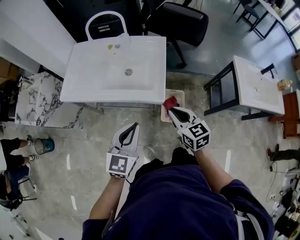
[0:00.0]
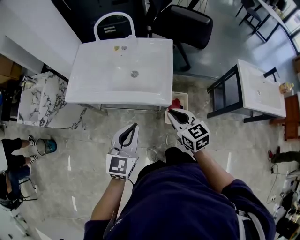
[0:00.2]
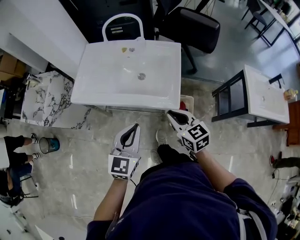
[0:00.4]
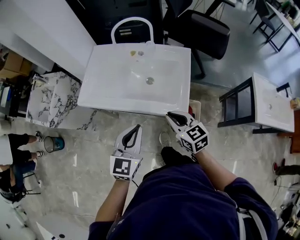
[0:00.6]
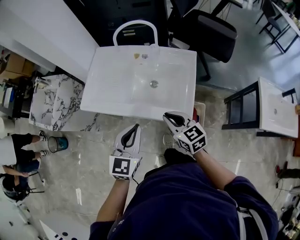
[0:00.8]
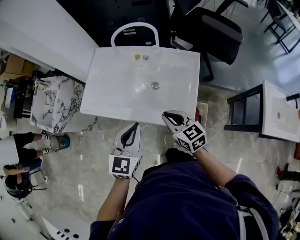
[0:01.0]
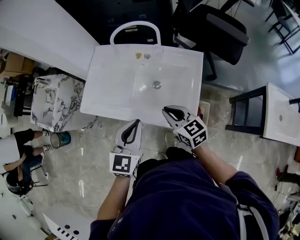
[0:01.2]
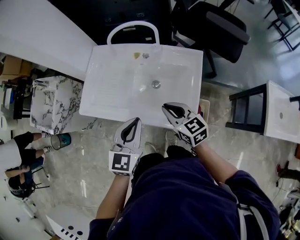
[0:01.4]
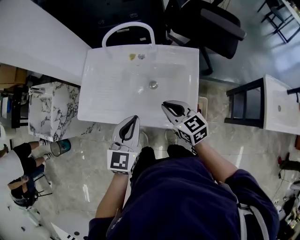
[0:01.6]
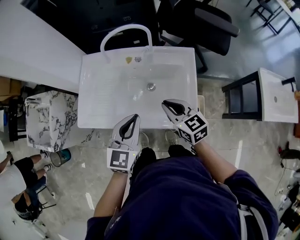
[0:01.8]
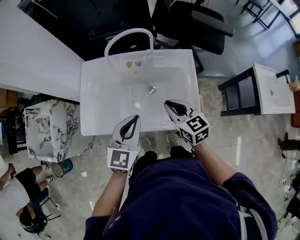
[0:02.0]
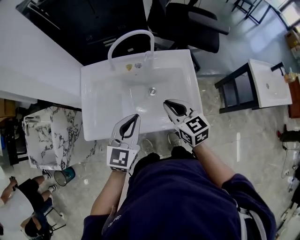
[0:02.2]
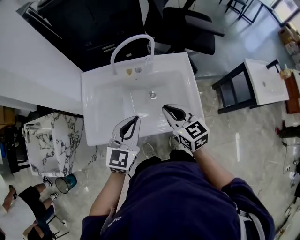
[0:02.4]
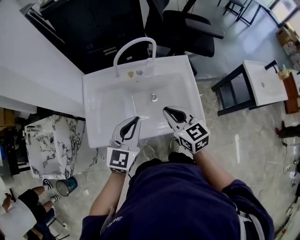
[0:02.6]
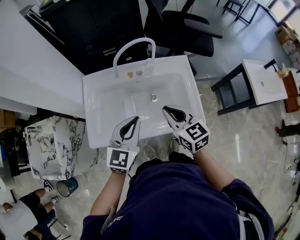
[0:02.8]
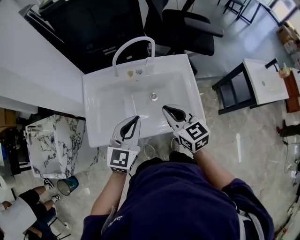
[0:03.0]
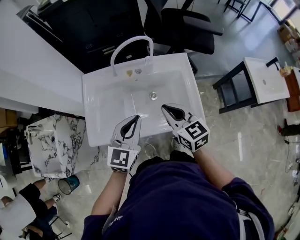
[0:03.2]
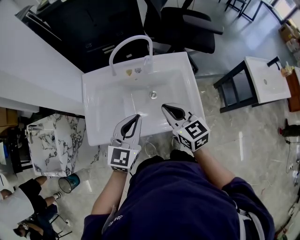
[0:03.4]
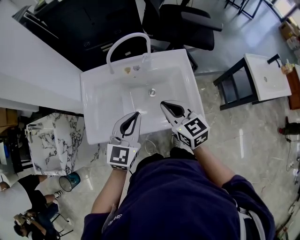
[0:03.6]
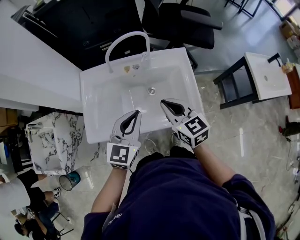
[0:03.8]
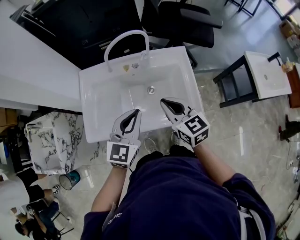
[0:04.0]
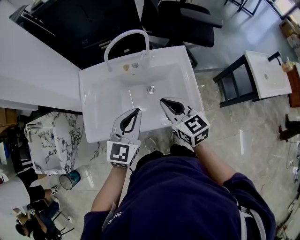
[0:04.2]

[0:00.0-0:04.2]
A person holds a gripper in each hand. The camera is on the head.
0:00.0 to 0:01.4: The left gripper moves forward, roughly 20 cm; the right gripper travels forward and to the left by about 25 cm.
0:01.4 to 0:02.8: The right gripper moves approximately 10 cm, and changes its angle by roughly 30 degrees. Meanwhile the left gripper moves about 10 cm, and rotates roughly 20 degrees.
0:02.8 to 0:04.2: The grippers stay close to where they were, moving slightly.

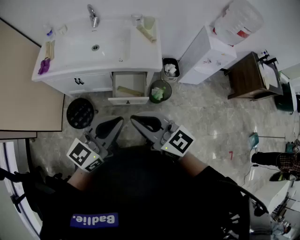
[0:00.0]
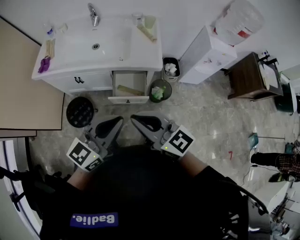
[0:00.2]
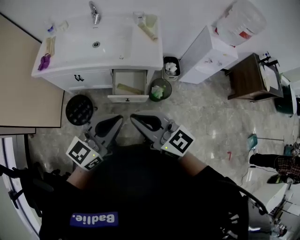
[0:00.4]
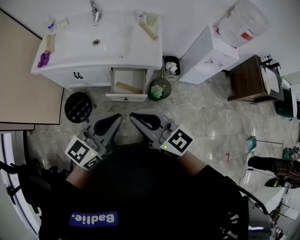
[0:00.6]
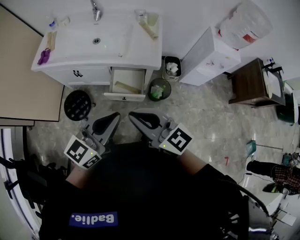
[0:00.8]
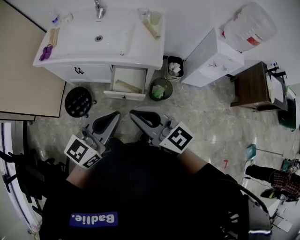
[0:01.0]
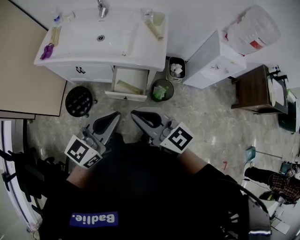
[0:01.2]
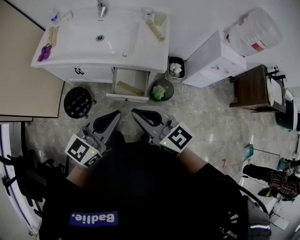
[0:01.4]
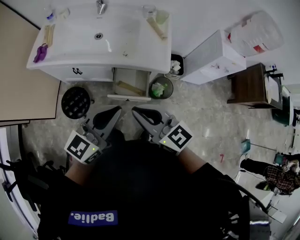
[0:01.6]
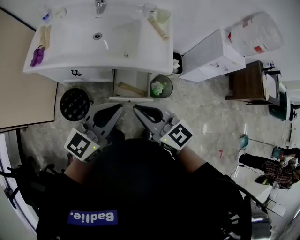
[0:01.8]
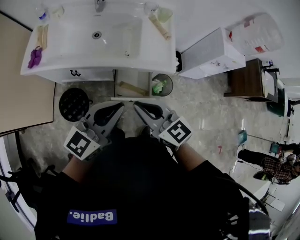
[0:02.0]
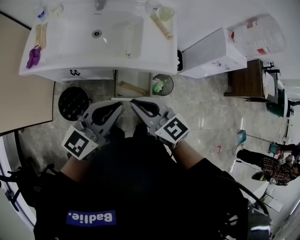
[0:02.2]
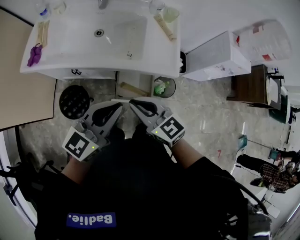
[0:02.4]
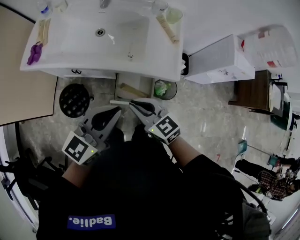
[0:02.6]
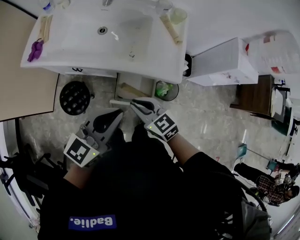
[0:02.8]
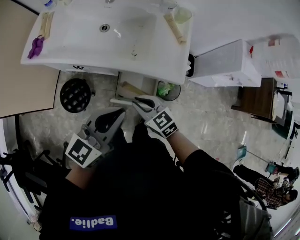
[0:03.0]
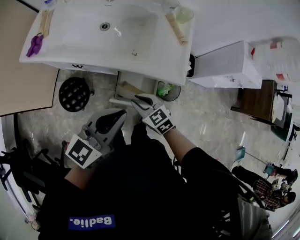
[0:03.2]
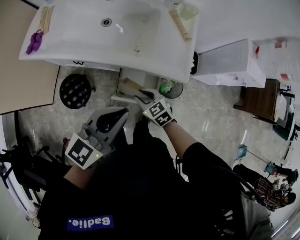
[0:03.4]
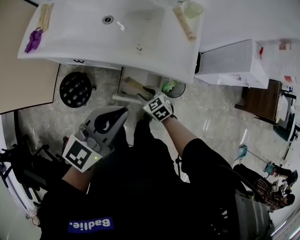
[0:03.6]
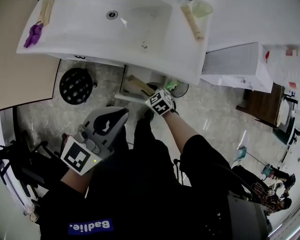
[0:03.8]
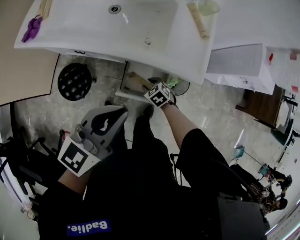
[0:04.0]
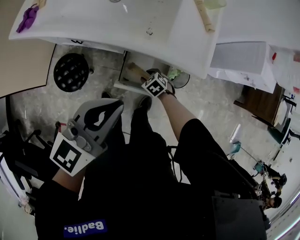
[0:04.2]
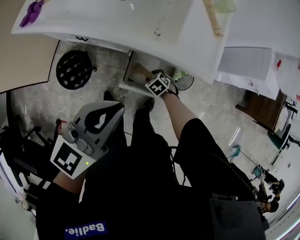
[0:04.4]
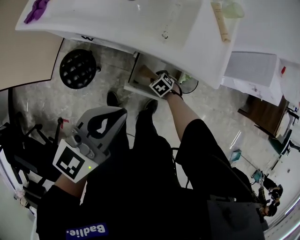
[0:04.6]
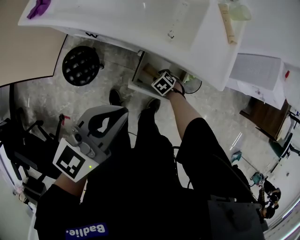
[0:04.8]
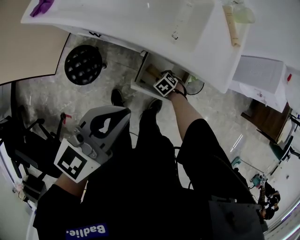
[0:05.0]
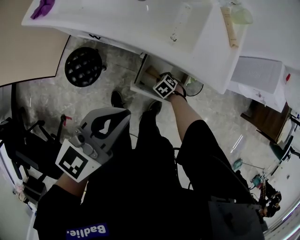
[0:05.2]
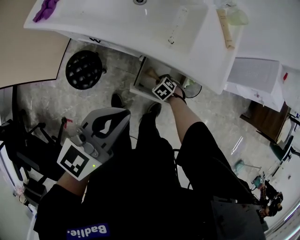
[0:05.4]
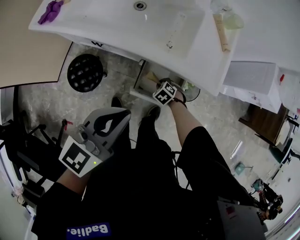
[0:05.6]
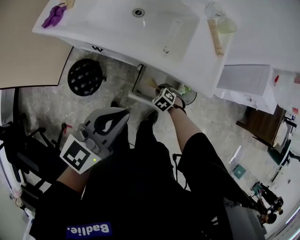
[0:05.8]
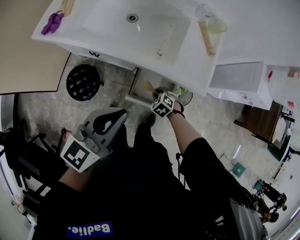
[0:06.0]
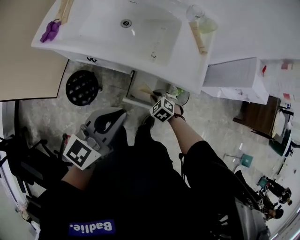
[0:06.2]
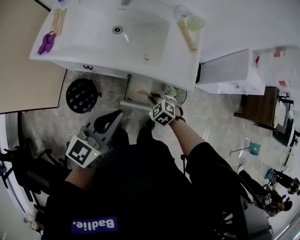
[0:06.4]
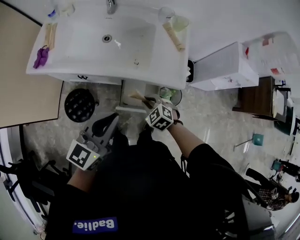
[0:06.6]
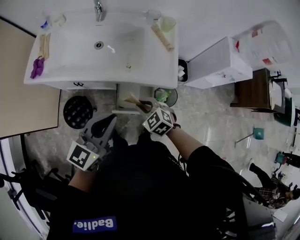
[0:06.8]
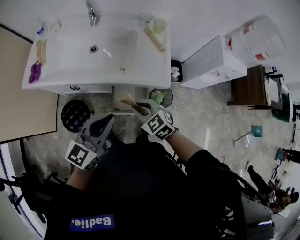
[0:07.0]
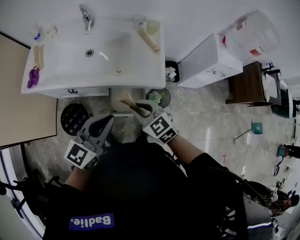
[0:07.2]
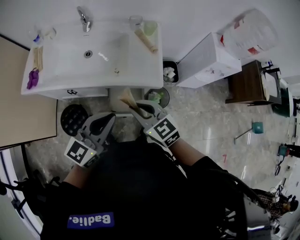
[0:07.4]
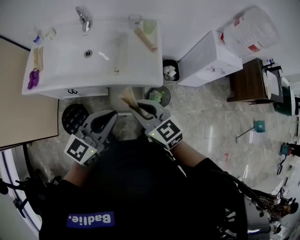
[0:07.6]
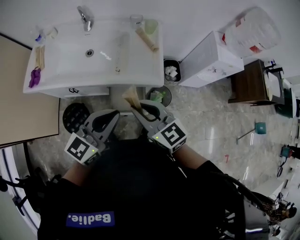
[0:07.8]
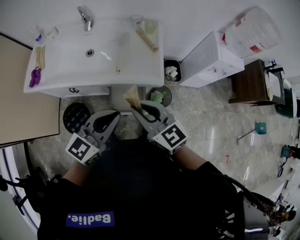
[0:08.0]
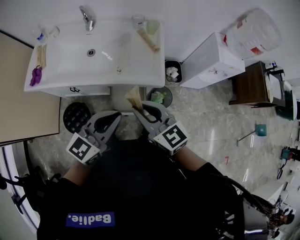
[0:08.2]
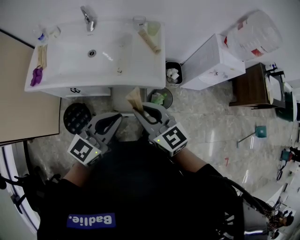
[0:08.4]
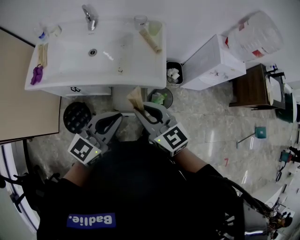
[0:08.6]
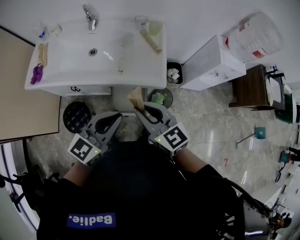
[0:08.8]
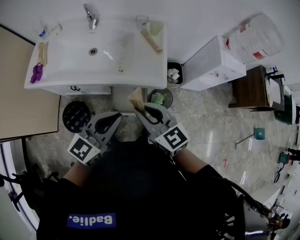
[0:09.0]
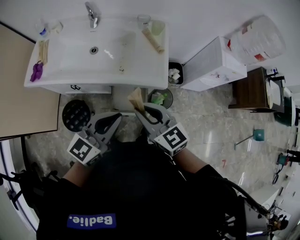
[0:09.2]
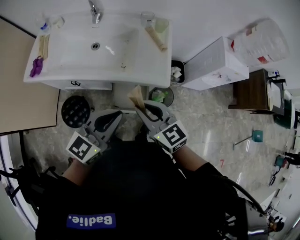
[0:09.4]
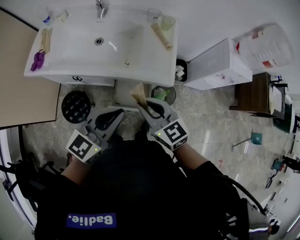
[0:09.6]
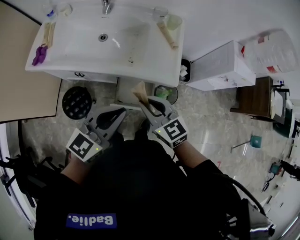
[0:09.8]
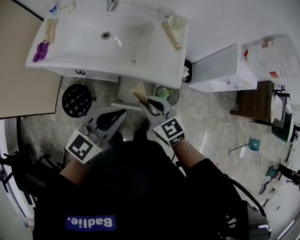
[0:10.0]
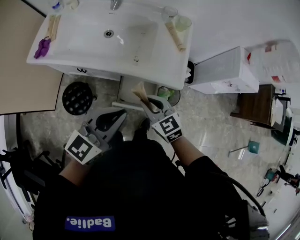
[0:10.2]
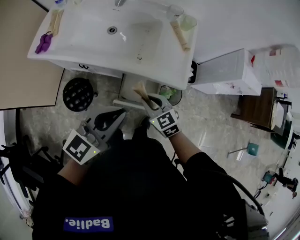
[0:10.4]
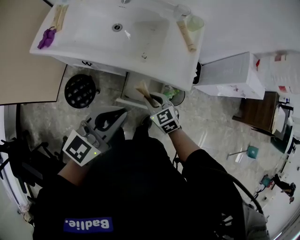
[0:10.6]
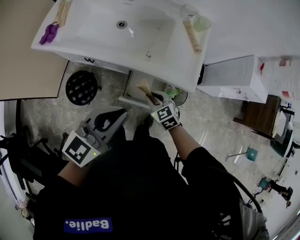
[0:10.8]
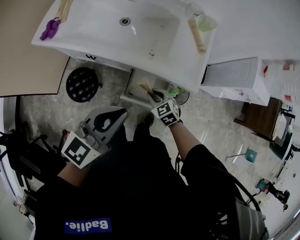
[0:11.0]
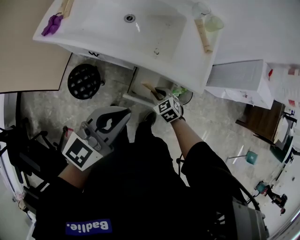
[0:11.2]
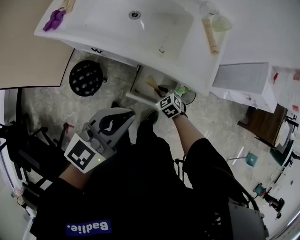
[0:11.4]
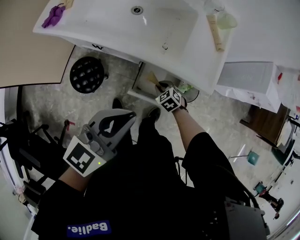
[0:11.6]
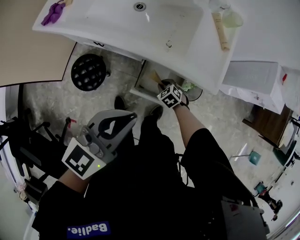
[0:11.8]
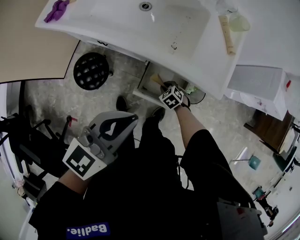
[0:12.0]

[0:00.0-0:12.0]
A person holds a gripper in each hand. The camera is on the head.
0:00.0 to 0:01.6: The two grippers go about 10 cm forward.
0:01.6 to 0:03.0: The right gripper travels downward and forward by roughly 25 cm, and swivels about 30 degrees; the left gripper shifts approximately 10 cm forward and downward.
0:03.0 to 0:04.4: The right gripper is displaced downward by some 35 cm, tips its fingers downward by roughly 40 degrees, and opens its fingers. The left gripper changes place by some 10 cm.
0:04.4 to 0:06.0: The right gripper goes some 10 cm upward, and closes.
0:06.0 to 0:07.6: The right gripper shifts some 40 cm upward, and tilts its fingers about 50 degrees upward; the left gripper heads to the right and upward, covering roughly 15 cm.
0:07.6 to 0:09.0: The grippers stay close to where they were, moving slightly.
0:09.0 to 0:10.4: The left gripper heads to the left, covering about 5 cm. The right gripper goes roughly 20 cm downward, and turns by some 20 degrees.
0:10.4 to 0:12.0: The right gripper travels downward by some 30 cm, and angles its fingers downward, by approximately 30 degrees, while the left gripper travels downward by about 5 cm.

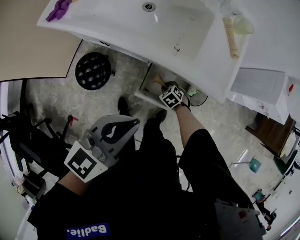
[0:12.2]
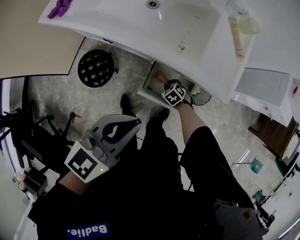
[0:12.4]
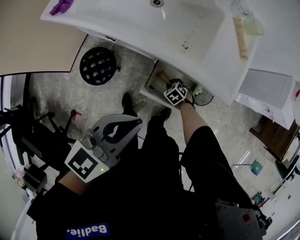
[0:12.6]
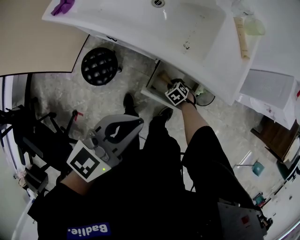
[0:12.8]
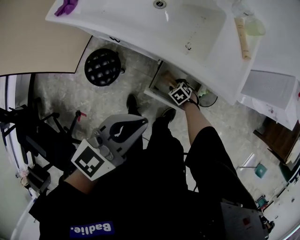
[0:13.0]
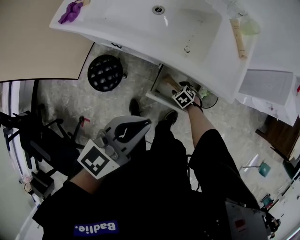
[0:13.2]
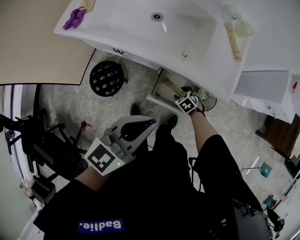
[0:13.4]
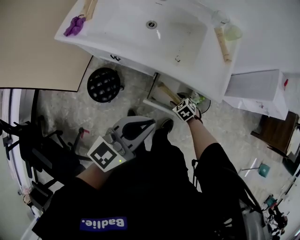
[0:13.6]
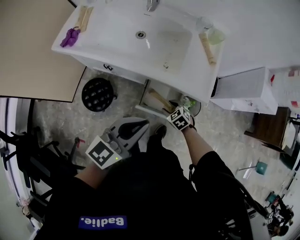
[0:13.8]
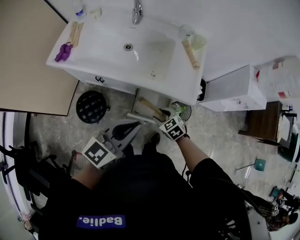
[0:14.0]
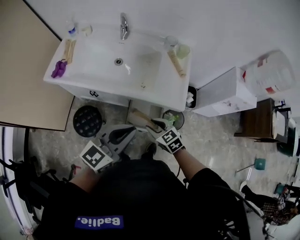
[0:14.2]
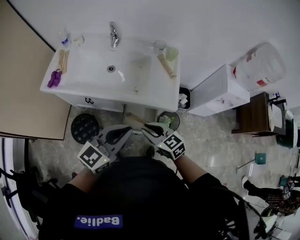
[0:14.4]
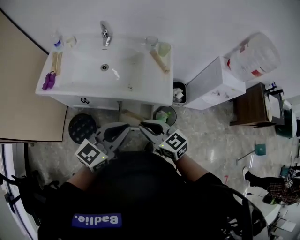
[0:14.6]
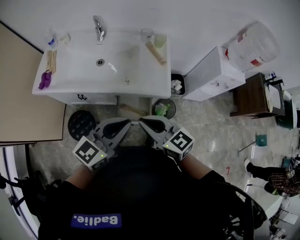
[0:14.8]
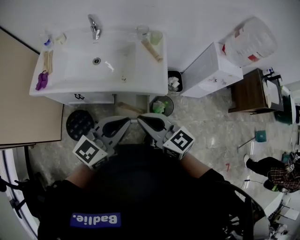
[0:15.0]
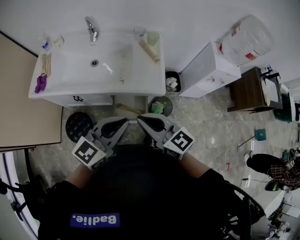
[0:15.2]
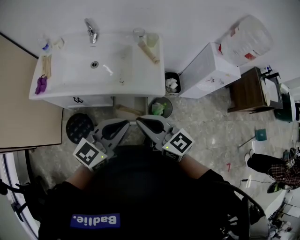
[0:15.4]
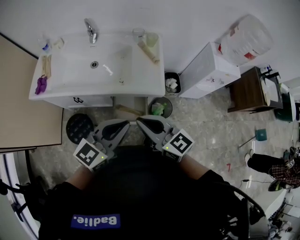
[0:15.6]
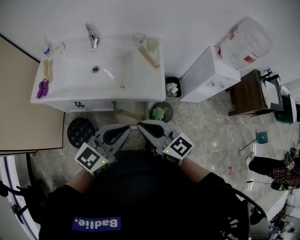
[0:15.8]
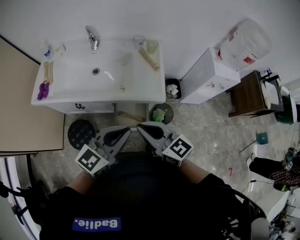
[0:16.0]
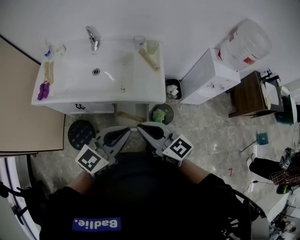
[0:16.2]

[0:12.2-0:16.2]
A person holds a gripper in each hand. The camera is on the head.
0:12.2 to 0:13.6: The right gripper is displaced upward by about 10 cm, and opens up.
0:13.6 to 0:14.8: The right gripper goes about 40 cm upward, points its fingers approximately 50 degrees further upward, and closes; the left gripper heads upward and to the right, covering some 15 cm.
0:14.8 to 0:16.2: The grippers move only a little.

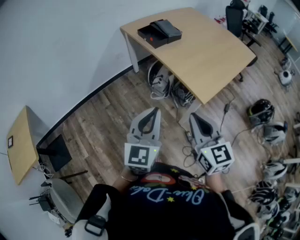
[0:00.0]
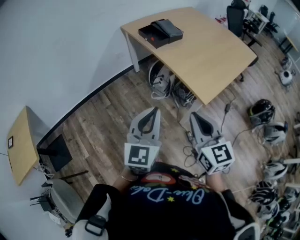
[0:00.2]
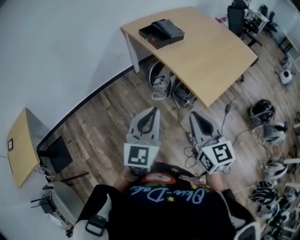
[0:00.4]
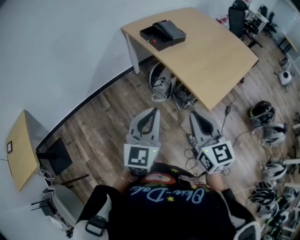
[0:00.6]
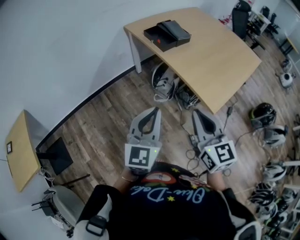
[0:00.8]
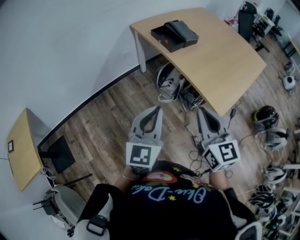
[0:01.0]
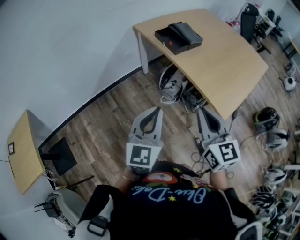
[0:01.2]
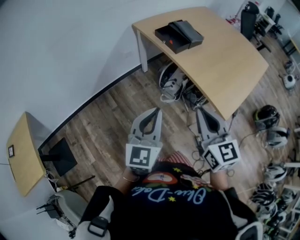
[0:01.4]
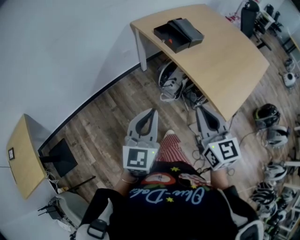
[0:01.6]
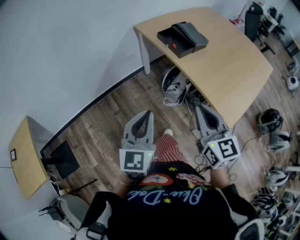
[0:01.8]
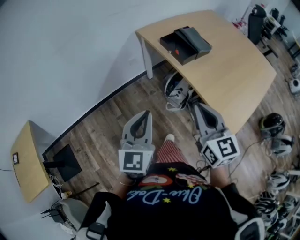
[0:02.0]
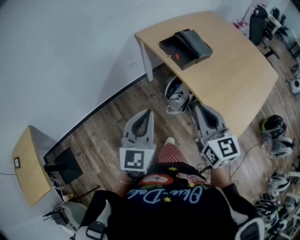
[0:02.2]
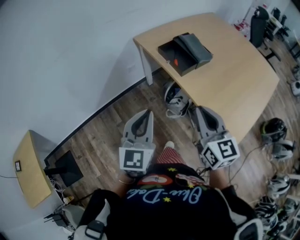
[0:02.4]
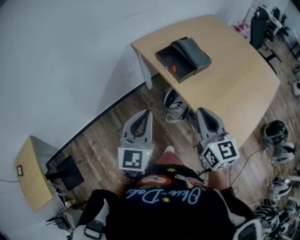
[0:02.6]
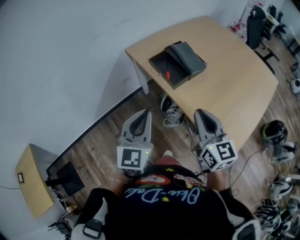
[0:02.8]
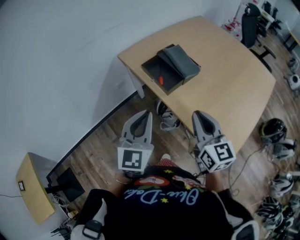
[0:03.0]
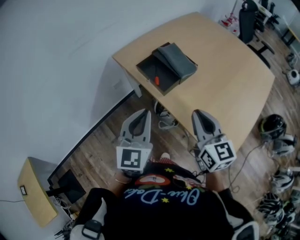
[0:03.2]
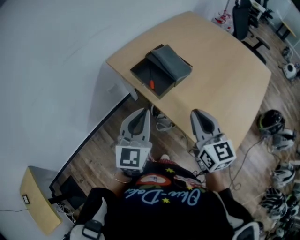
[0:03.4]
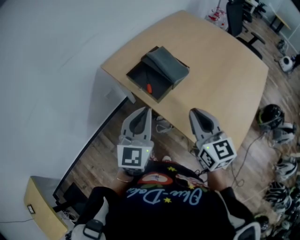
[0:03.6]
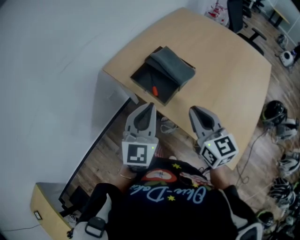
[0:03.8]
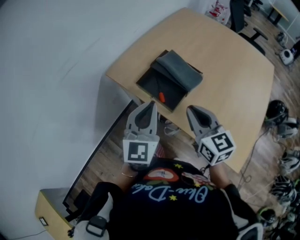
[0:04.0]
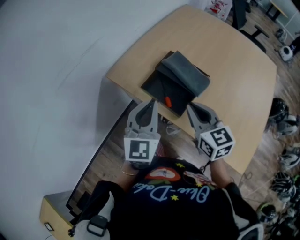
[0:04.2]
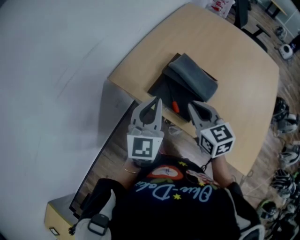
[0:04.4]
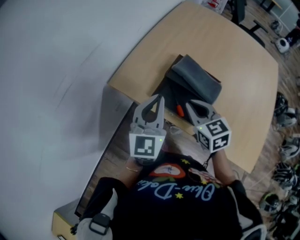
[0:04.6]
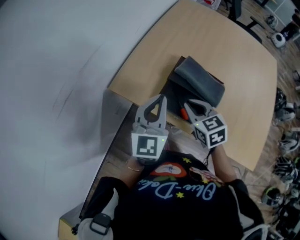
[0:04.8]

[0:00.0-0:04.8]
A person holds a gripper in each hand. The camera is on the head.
0:00.0 to 0:01.6: The right gripper goes some 20 cm forward and to the left. The left gripper goes roughly 20 cm to the left and forward.
0:01.6 to 0:03.2: Both grippers move forward, approximately 25 cm.
0:03.2 to 0:04.8: The right gripper heads forward, to the left and downward, covering roughly 35 cm, and swivels some 30 degrees. Meanwhile the left gripper shifts roughly 30 cm forward, and swivels about 20 degrees.
